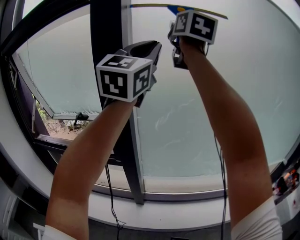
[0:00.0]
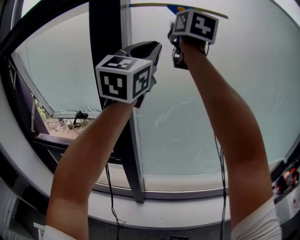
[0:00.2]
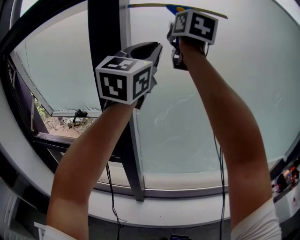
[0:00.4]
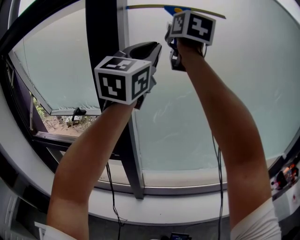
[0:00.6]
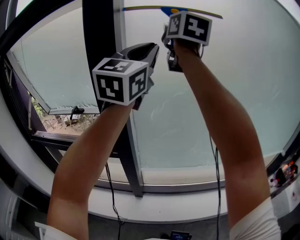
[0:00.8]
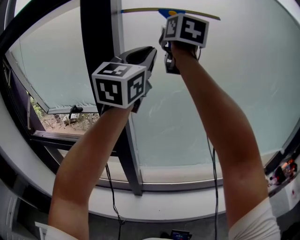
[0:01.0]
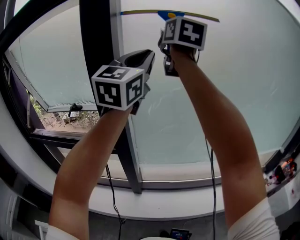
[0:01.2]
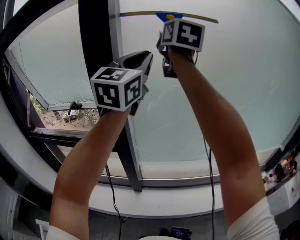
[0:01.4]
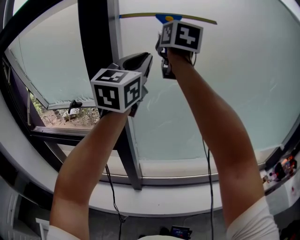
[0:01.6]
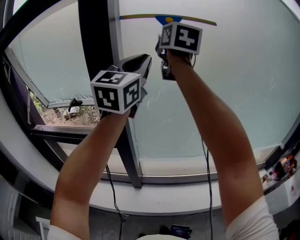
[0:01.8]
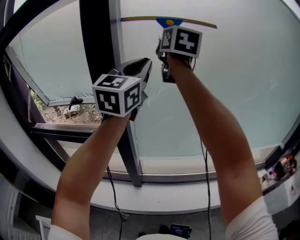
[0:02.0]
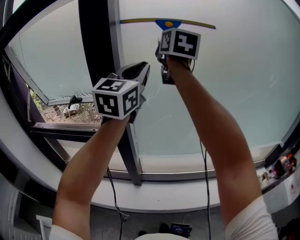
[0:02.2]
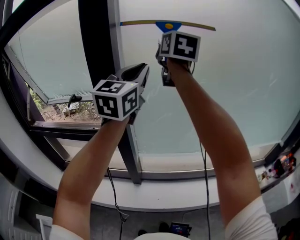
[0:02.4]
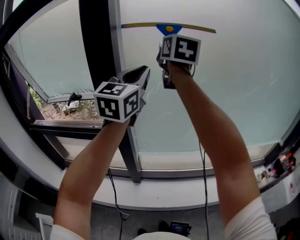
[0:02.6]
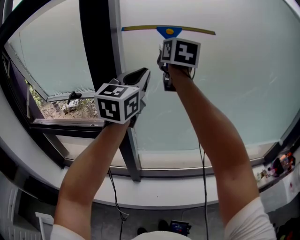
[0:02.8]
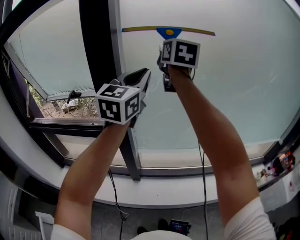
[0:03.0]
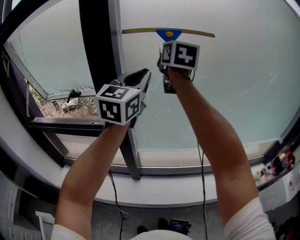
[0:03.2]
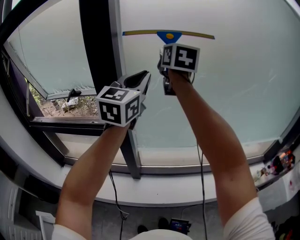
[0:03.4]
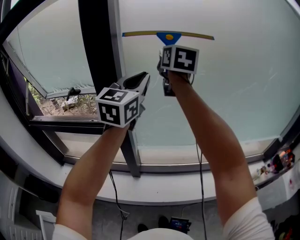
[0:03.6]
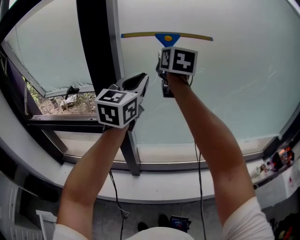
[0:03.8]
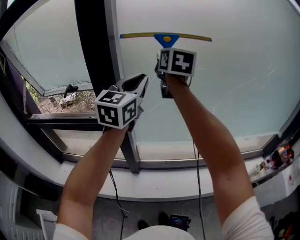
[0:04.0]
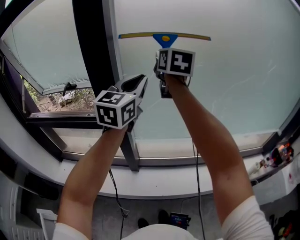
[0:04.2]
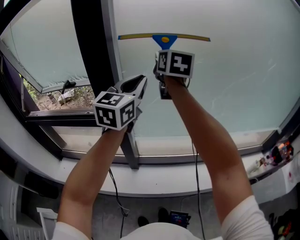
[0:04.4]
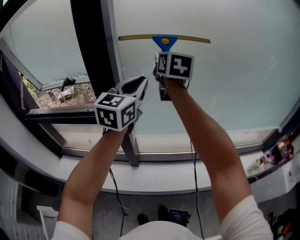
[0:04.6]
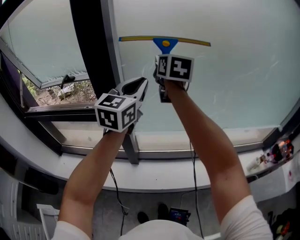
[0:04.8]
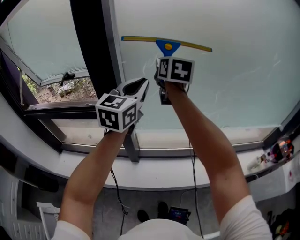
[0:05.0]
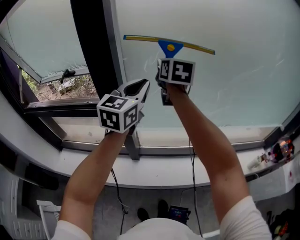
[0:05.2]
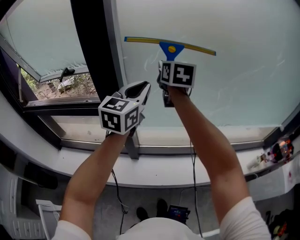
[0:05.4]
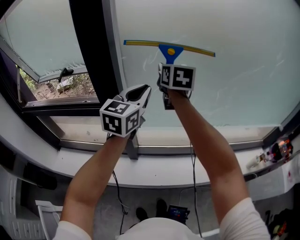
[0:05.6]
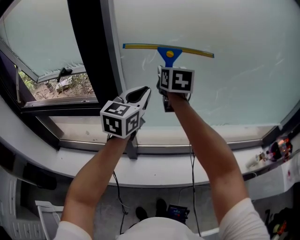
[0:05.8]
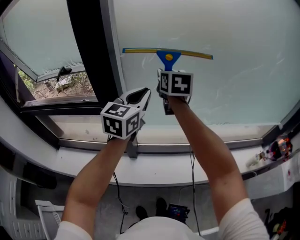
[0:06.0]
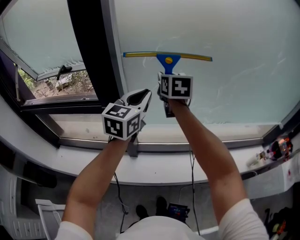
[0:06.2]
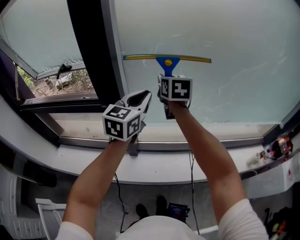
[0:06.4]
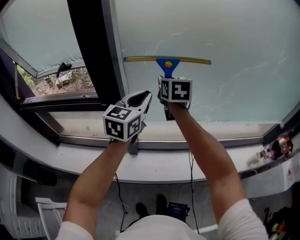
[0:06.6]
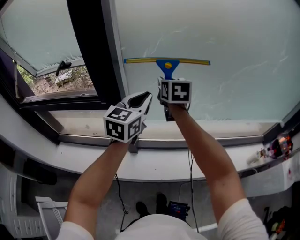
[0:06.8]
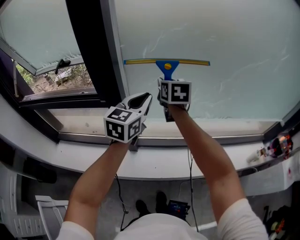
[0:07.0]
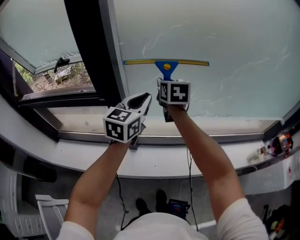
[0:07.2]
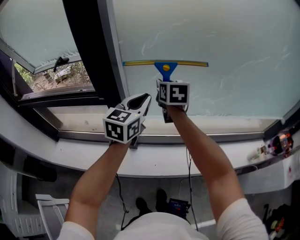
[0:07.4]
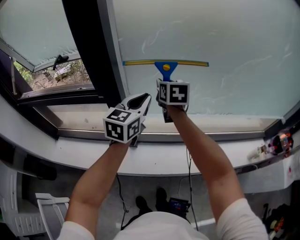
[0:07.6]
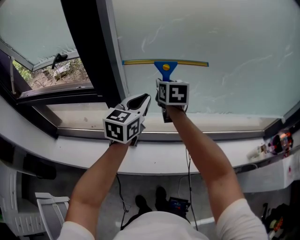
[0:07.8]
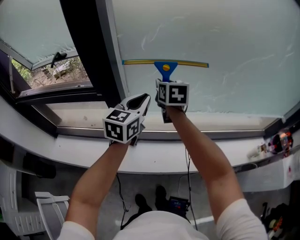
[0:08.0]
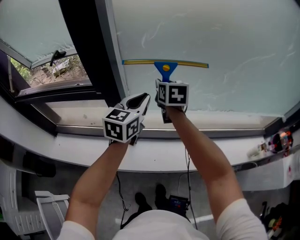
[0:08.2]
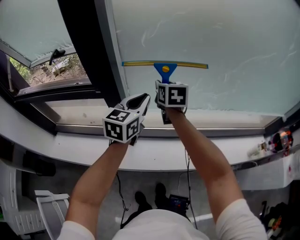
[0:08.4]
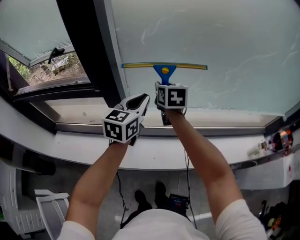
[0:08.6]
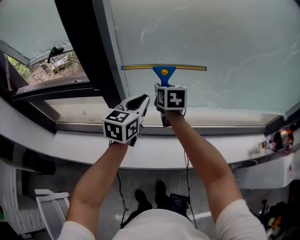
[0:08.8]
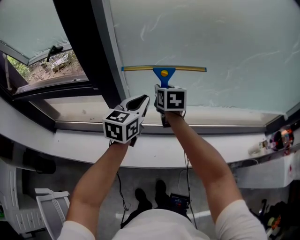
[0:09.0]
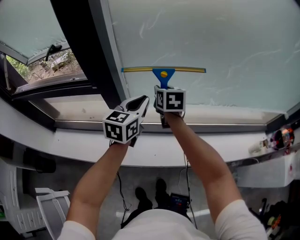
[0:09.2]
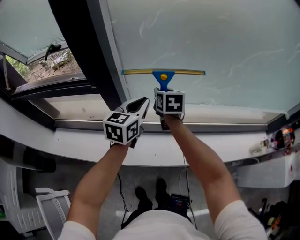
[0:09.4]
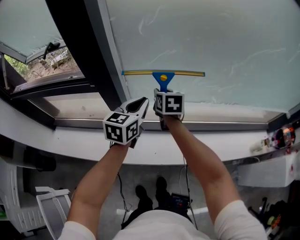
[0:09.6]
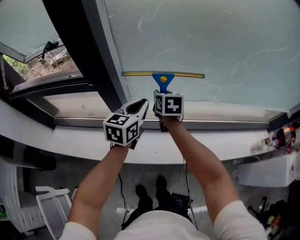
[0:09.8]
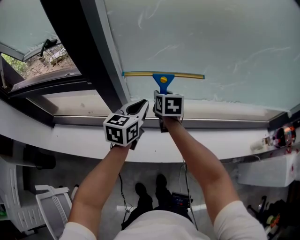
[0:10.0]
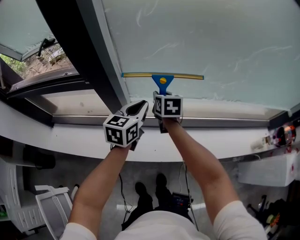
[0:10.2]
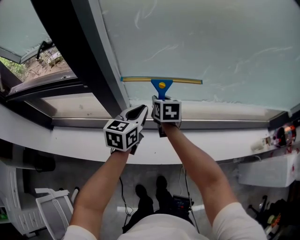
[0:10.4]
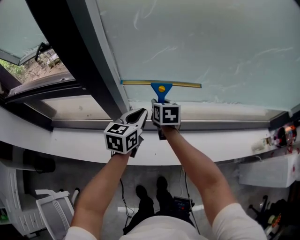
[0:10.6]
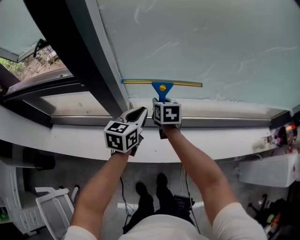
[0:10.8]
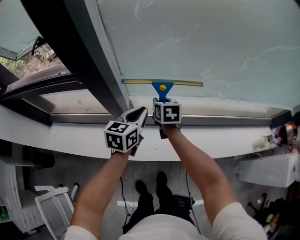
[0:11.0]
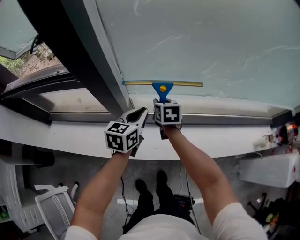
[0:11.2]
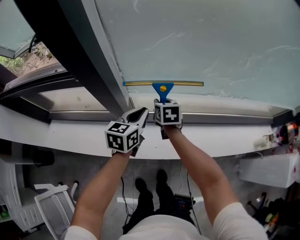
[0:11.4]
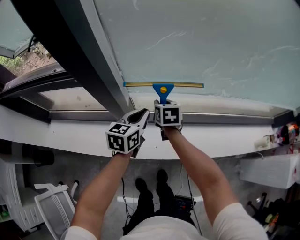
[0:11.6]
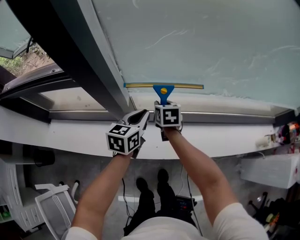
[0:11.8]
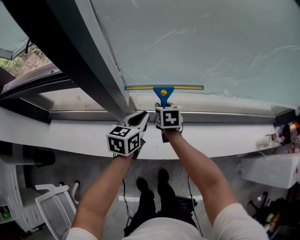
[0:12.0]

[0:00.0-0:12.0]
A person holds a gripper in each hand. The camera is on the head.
0:00.0 to 0:01.6: The grippers both shift downward by some 10 cm.
0:01.6 to 0:03.0: Both grippers travel together downward, roughly 10 cm.
0:03.0 to 0:04.4: Both grippers move downward, roughly 10 cm.
0:04.4 to 0:06.0: Both grippers move downward, roughly 15 cm.
0:06.0 to 0:07.6: The grippers both shift downward by approximately 10 cm.
0:07.6 to 0:09.0: Both grippers move downward, about 10 cm.
0:09.0 to 0:10.4: Both grippers move downward, about 10 cm.
0:10.4 to 0:12.0: The grippers both shift downward by roughly 10 cm.

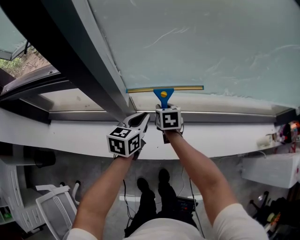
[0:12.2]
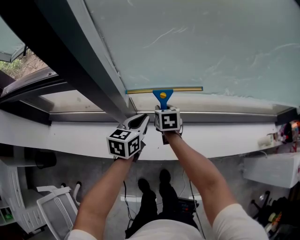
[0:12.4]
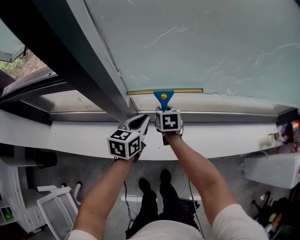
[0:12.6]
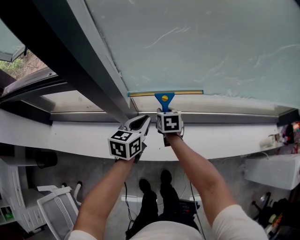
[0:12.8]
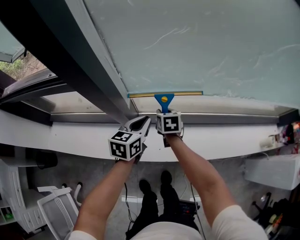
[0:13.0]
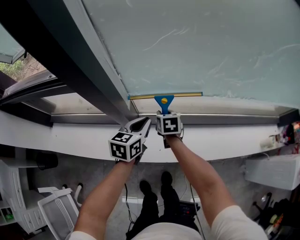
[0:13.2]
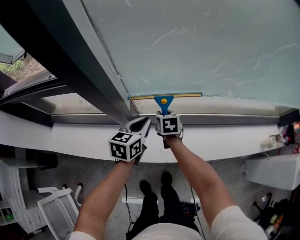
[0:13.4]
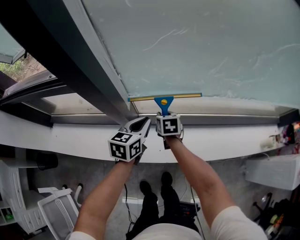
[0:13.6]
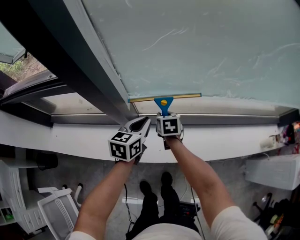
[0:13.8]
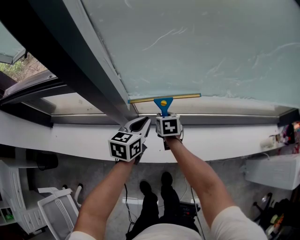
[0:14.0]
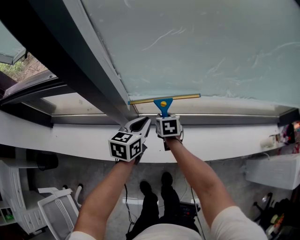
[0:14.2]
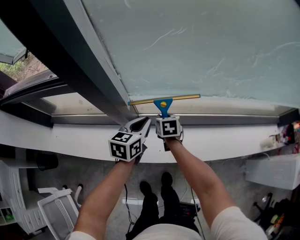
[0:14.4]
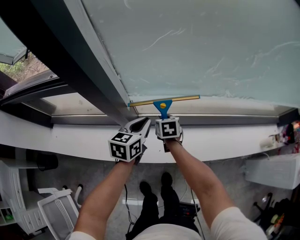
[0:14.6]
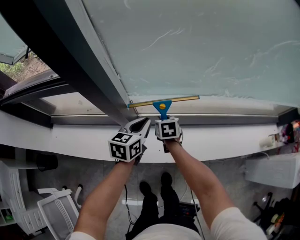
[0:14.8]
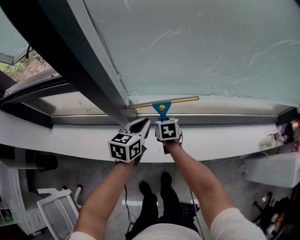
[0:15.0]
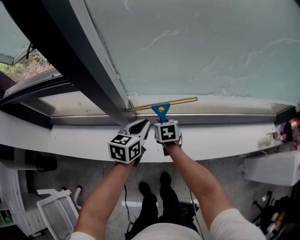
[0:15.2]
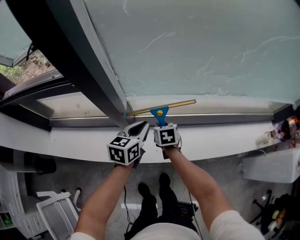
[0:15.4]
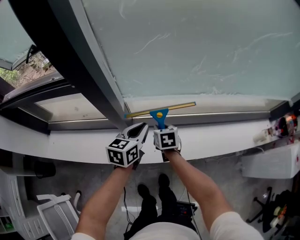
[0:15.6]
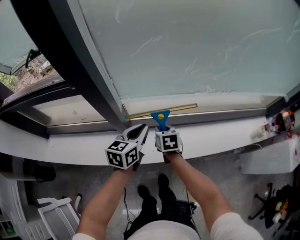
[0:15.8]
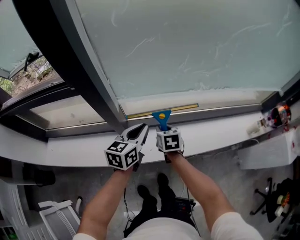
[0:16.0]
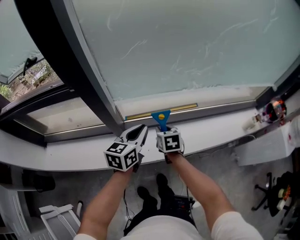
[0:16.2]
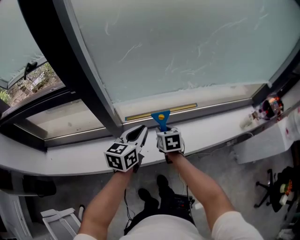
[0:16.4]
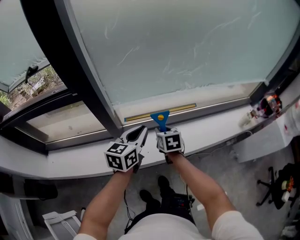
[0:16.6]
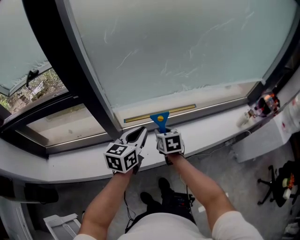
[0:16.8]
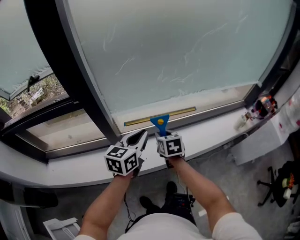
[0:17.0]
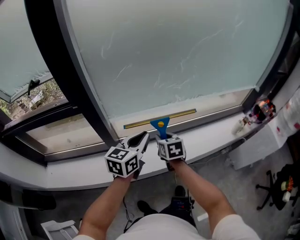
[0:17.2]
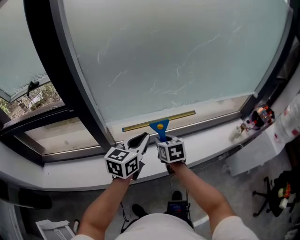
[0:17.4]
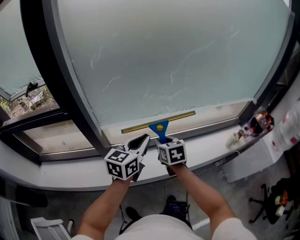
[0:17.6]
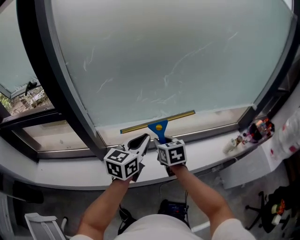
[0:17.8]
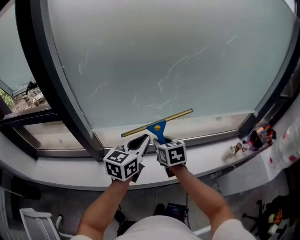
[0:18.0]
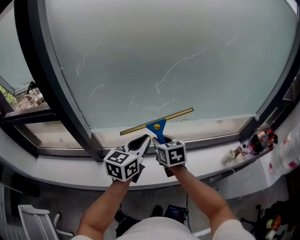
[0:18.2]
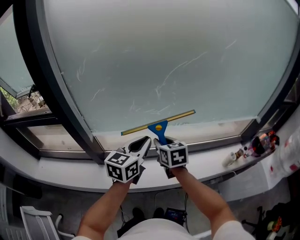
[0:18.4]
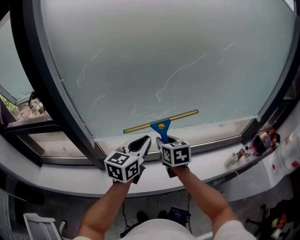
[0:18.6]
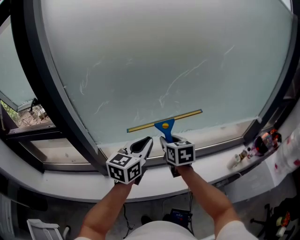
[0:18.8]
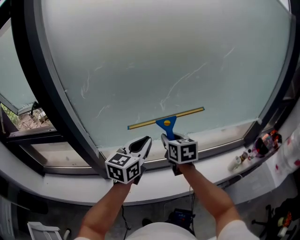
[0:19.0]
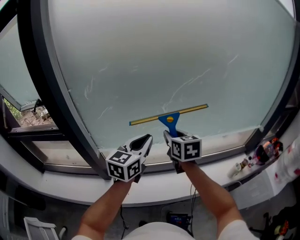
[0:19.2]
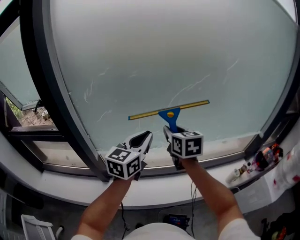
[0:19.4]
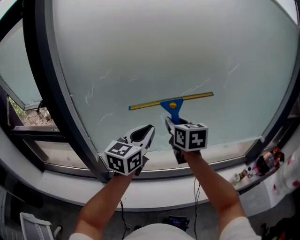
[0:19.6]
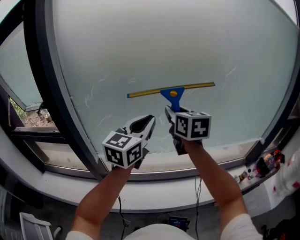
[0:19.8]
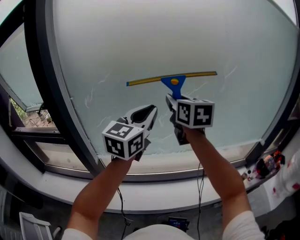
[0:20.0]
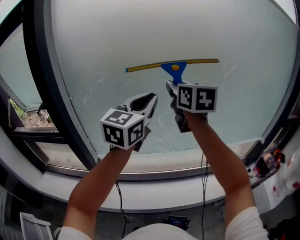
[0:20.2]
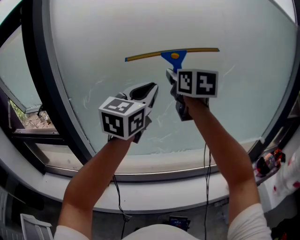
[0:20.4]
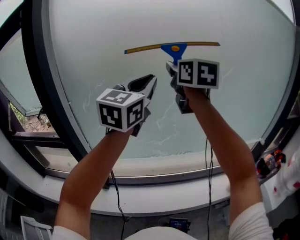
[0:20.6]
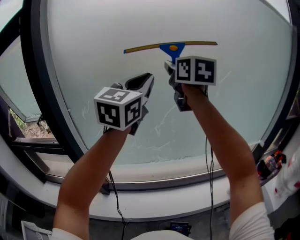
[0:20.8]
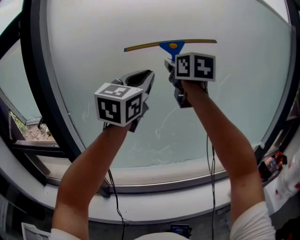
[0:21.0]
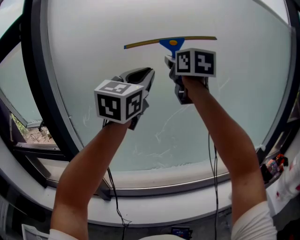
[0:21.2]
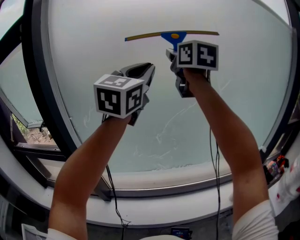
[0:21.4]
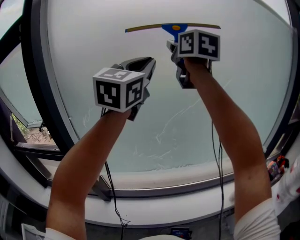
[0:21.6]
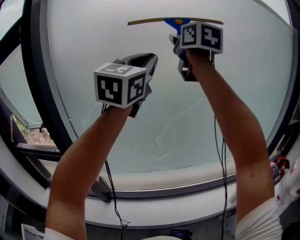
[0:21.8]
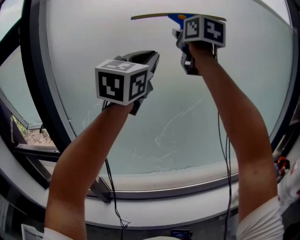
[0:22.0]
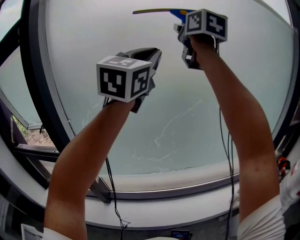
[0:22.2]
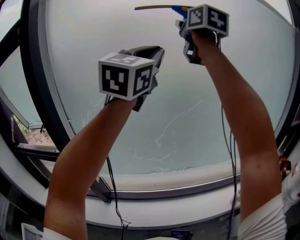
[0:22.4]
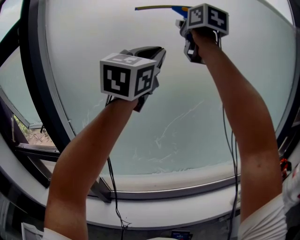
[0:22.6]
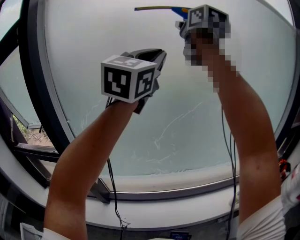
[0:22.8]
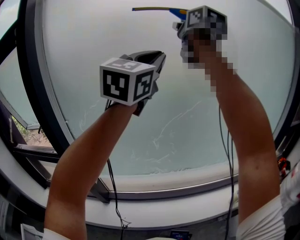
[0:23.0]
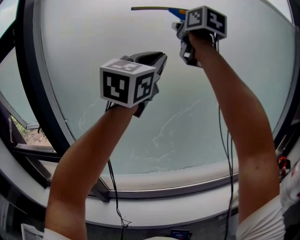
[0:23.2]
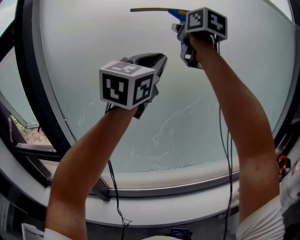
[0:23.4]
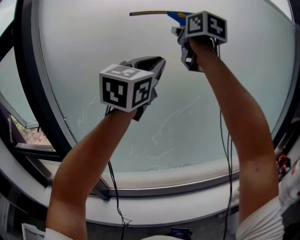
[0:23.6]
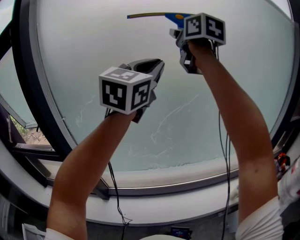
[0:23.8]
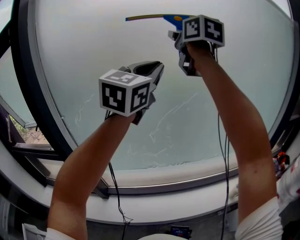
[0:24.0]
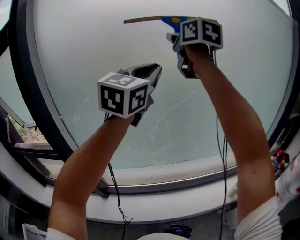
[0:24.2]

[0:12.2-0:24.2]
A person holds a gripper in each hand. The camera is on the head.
0:12.2 to 0:13.8: The grippers make only small movements.
0:13.8 to 0:15.2: There are only small adjustments of the grippers.
0:15.2 to 0:16.6: Both grippers travel together upward, backward and to the right, roughly 20 cm.
0:16.6 to 0:18.2: Both grippers move to the right and upward, roughly 25 cm.
0:18.2 to 0:19.8: The two grippers go approximately 25 cm upward and forward. The right gripper swivels about 20 degrees.
0:19.8 to 0:21.2: Both grippers move upward, some 25 cm.
0:21.2 to 0:22.6: The left gripper moves upward, approximately 10 cm. Meanwhile the right gripper travels upward by about 15 cm.
0:22.6 to 0:24.2: The grippers both shift downward by some 10 cm.
